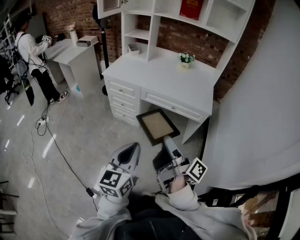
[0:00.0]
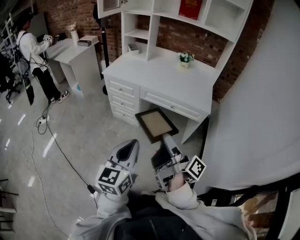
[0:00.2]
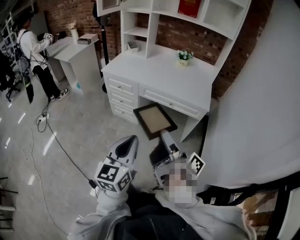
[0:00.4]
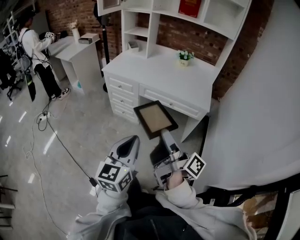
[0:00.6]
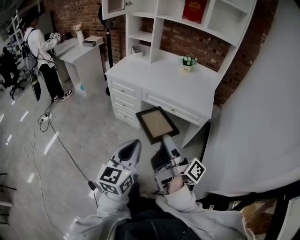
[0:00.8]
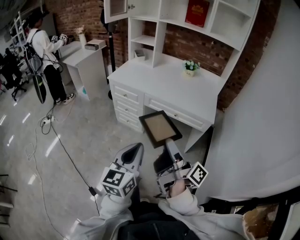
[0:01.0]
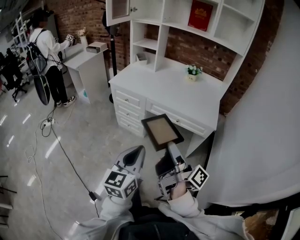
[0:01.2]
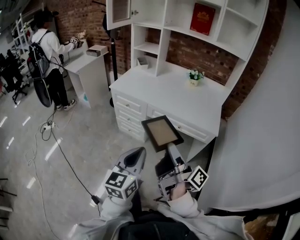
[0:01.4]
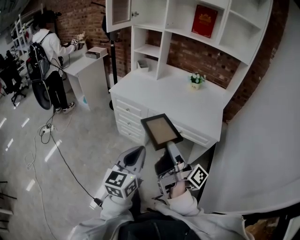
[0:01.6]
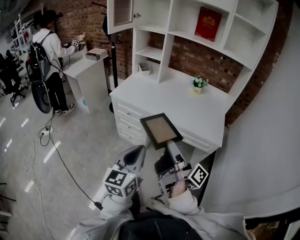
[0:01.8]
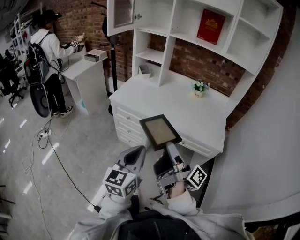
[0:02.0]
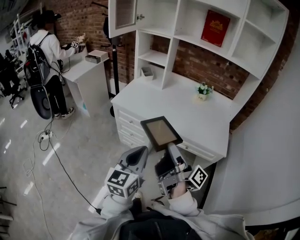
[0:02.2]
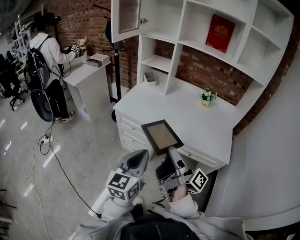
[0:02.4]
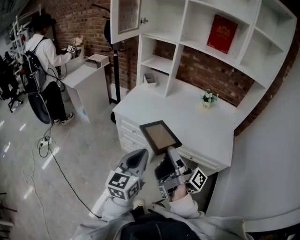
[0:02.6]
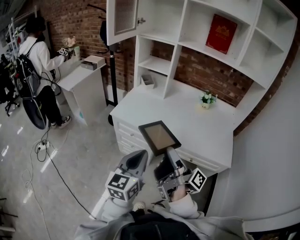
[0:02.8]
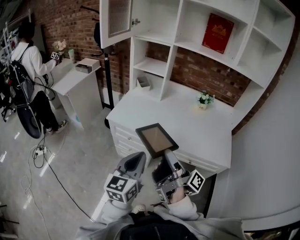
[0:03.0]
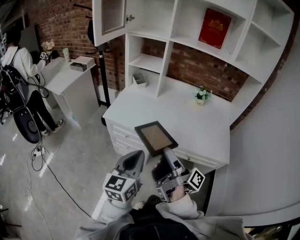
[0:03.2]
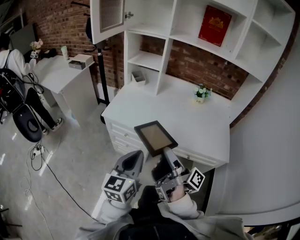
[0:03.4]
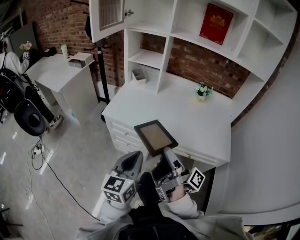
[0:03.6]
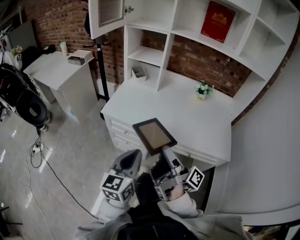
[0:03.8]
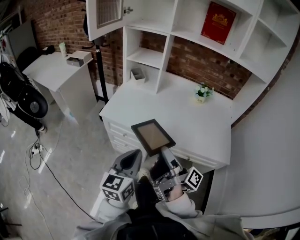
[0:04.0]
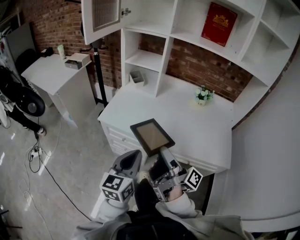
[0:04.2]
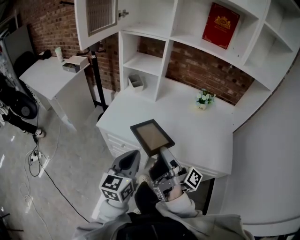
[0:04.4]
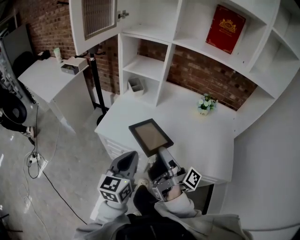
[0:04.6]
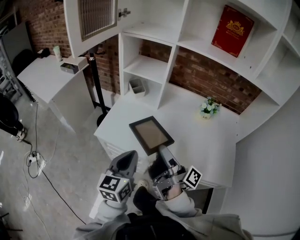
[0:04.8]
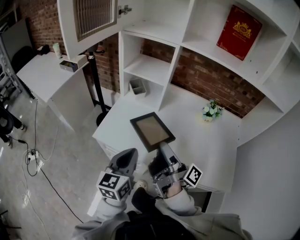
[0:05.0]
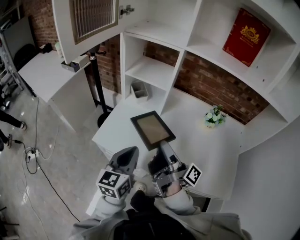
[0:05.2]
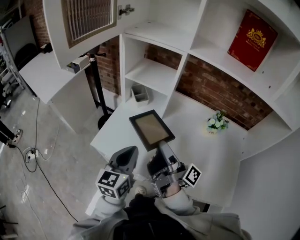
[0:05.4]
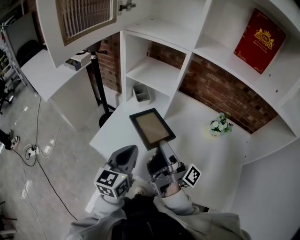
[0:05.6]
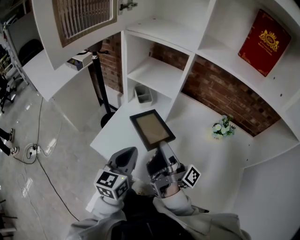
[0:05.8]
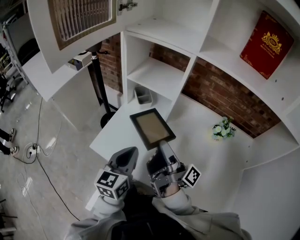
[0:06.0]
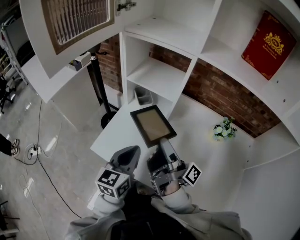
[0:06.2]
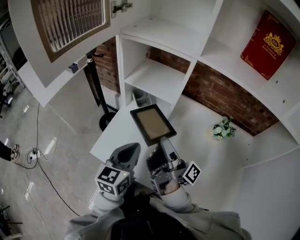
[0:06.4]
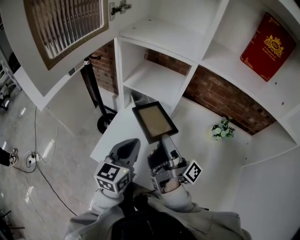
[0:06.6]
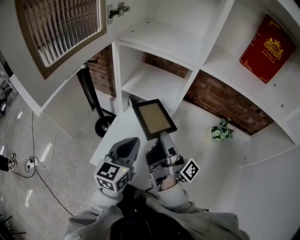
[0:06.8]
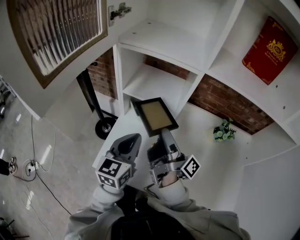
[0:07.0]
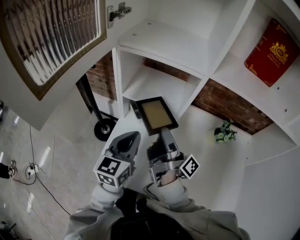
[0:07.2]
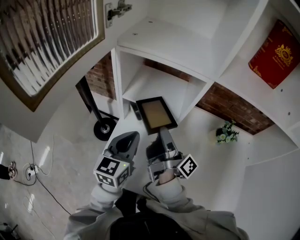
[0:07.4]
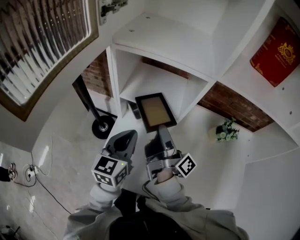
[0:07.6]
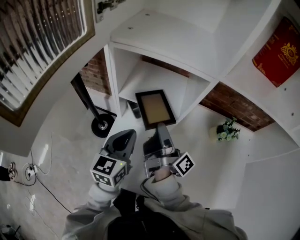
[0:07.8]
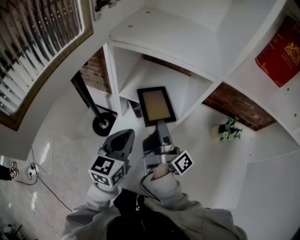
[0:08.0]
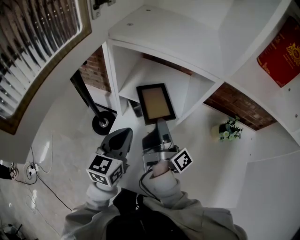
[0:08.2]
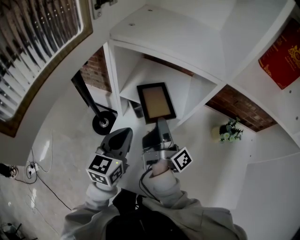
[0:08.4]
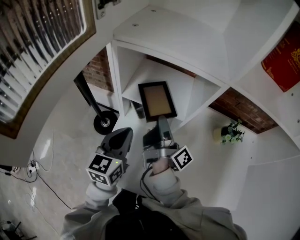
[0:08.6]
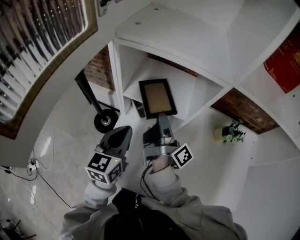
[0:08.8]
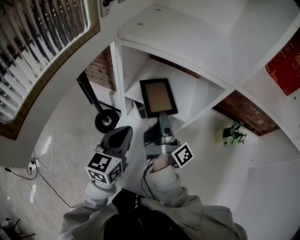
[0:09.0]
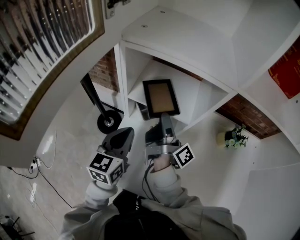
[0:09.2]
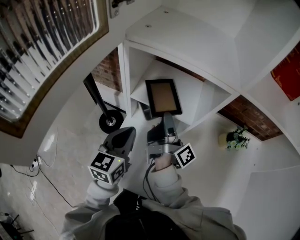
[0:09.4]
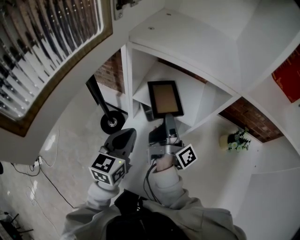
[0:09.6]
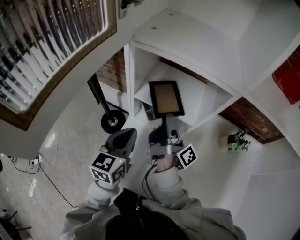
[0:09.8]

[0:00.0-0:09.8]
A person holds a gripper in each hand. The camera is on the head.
0:00.0 to 0:01.4: The left gripper changes place by roughly 10 cm.
0:01.4 to 0:02.8: The left gripper ends up about 30 cm from where it was.
0:02.8 to 0:04.2: The left gripper moves approximately 10 cm.
0:04.2 to 0:05.6: The left gripper changes place by approximately 30 cm.
0:05.6 to 0:07.0: The left gripper changes place by approximately 15 cm.
0:07.0 to 0:08.4: The left gripper shifts by about 10 cm.

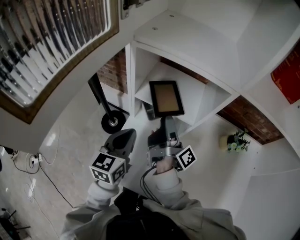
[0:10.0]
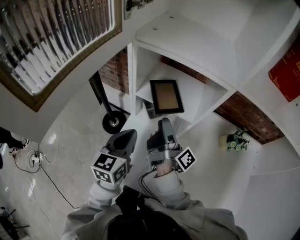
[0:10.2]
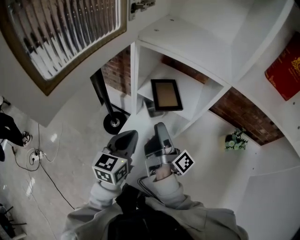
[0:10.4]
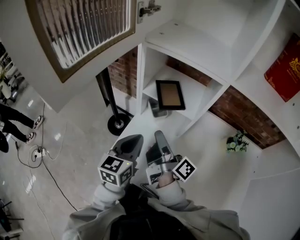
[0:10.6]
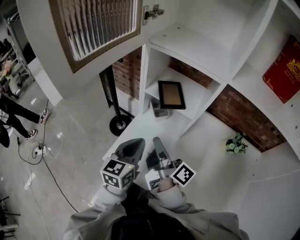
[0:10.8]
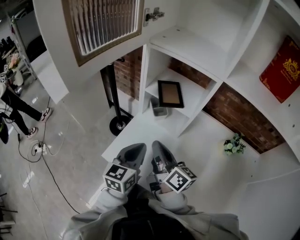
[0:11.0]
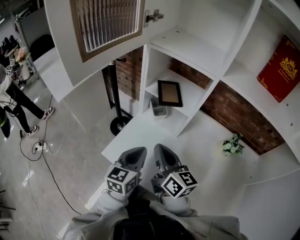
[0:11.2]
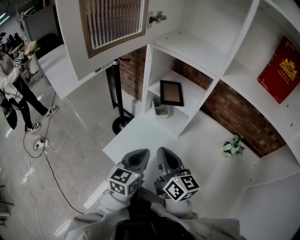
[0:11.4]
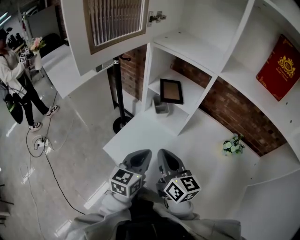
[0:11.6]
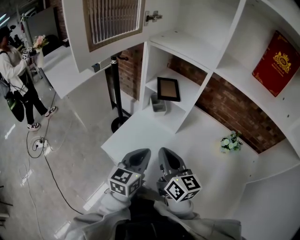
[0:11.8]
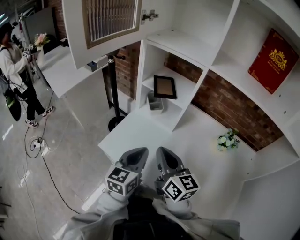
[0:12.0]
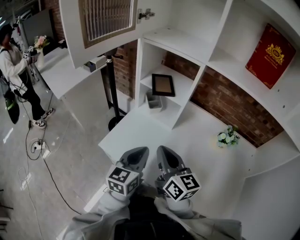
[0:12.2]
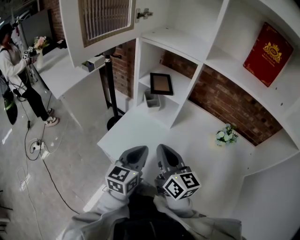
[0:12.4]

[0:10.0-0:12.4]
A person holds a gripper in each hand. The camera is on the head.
0:10.0 to 0:11.2: The left gripper ends up some 15 cm from where it was.
0:11.2 to 0:12.4: The left gripper shifts by some 10 cm.

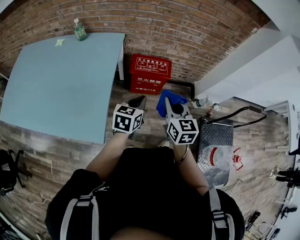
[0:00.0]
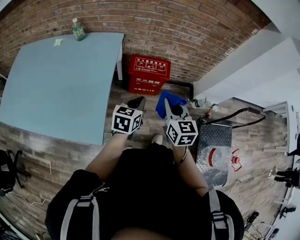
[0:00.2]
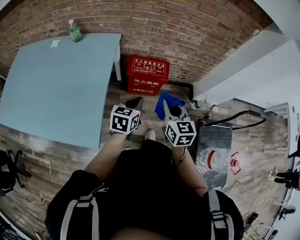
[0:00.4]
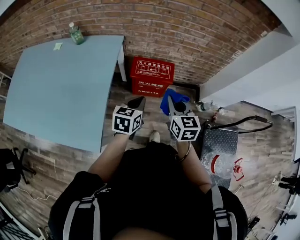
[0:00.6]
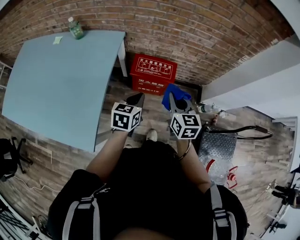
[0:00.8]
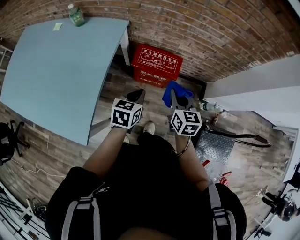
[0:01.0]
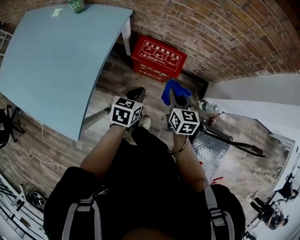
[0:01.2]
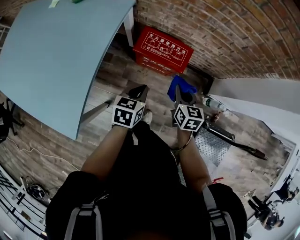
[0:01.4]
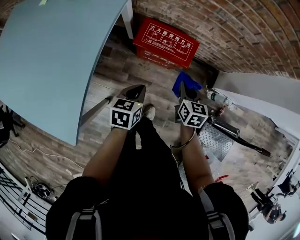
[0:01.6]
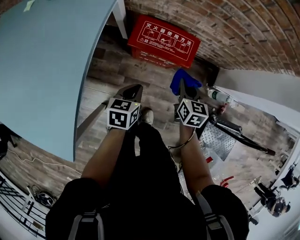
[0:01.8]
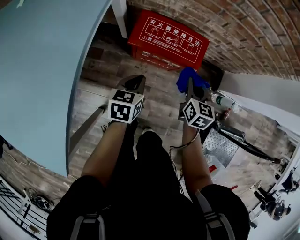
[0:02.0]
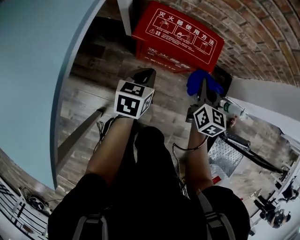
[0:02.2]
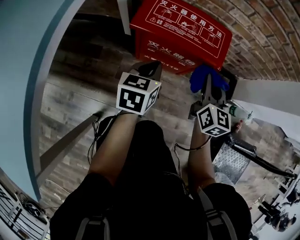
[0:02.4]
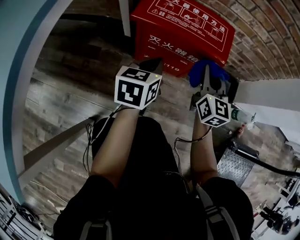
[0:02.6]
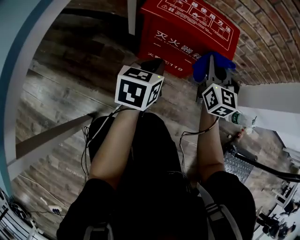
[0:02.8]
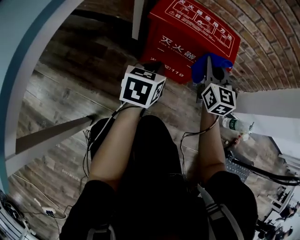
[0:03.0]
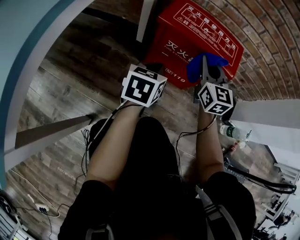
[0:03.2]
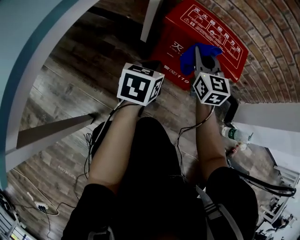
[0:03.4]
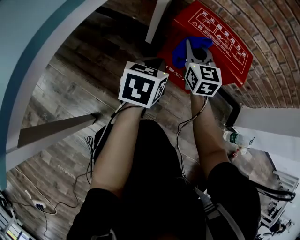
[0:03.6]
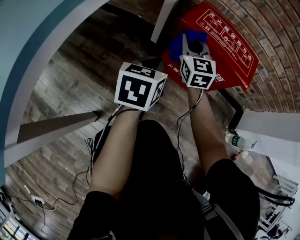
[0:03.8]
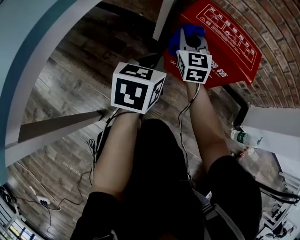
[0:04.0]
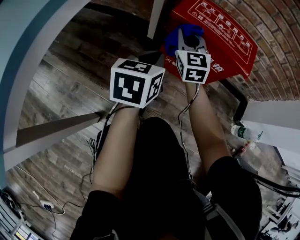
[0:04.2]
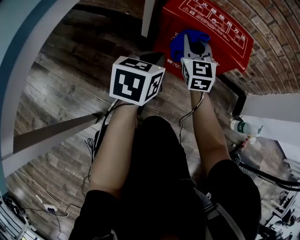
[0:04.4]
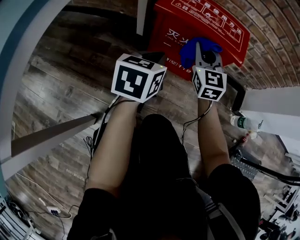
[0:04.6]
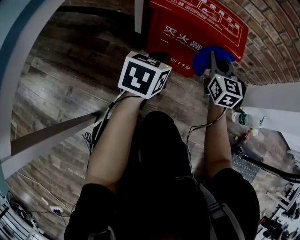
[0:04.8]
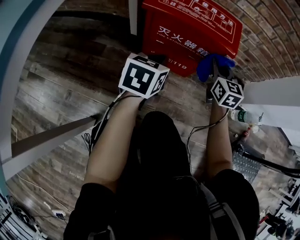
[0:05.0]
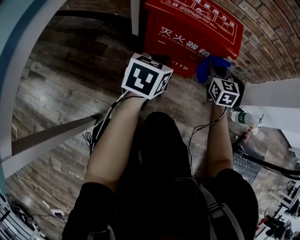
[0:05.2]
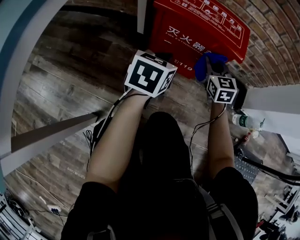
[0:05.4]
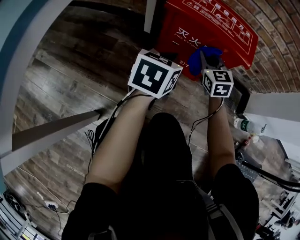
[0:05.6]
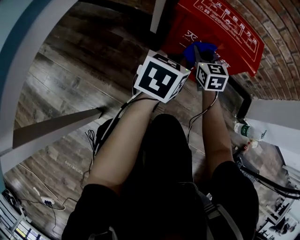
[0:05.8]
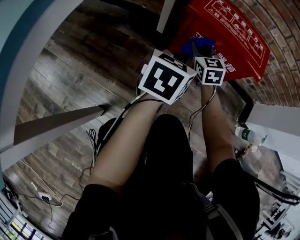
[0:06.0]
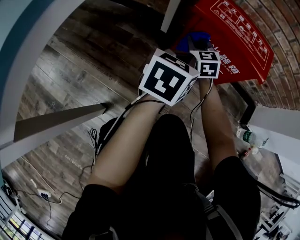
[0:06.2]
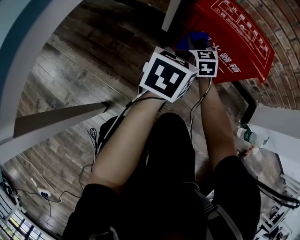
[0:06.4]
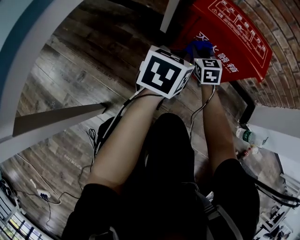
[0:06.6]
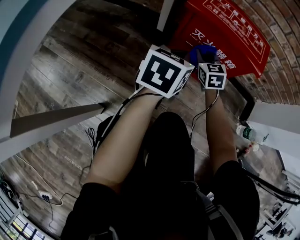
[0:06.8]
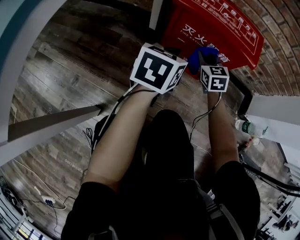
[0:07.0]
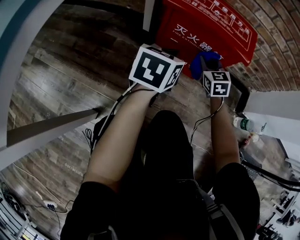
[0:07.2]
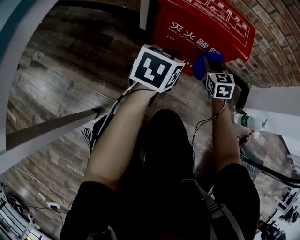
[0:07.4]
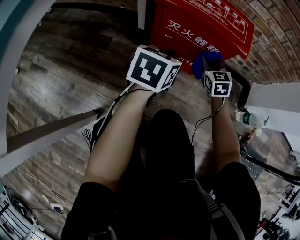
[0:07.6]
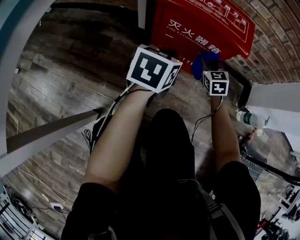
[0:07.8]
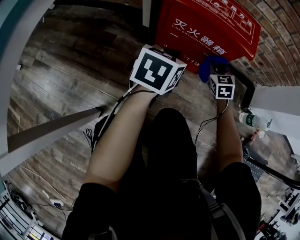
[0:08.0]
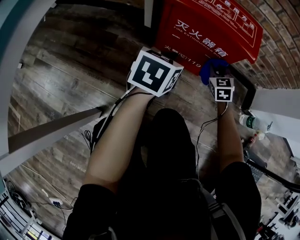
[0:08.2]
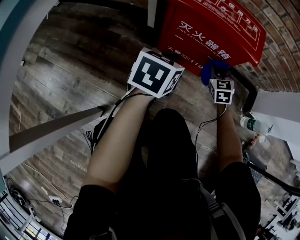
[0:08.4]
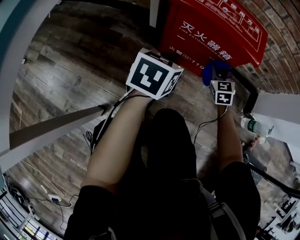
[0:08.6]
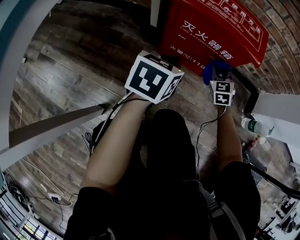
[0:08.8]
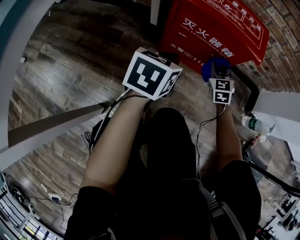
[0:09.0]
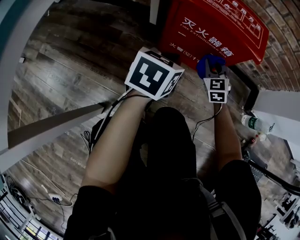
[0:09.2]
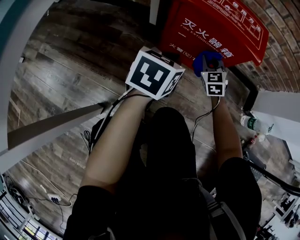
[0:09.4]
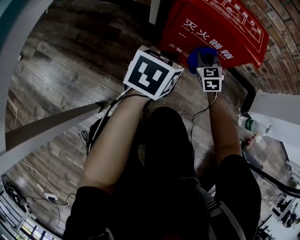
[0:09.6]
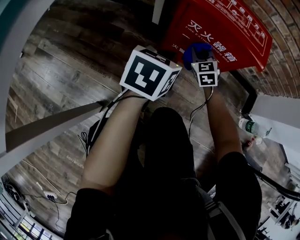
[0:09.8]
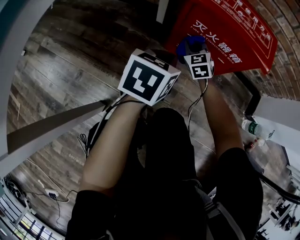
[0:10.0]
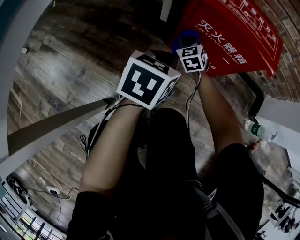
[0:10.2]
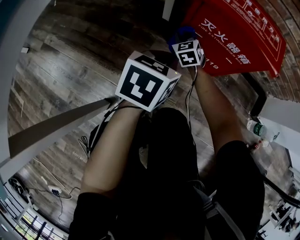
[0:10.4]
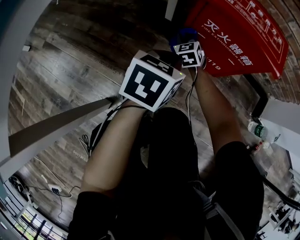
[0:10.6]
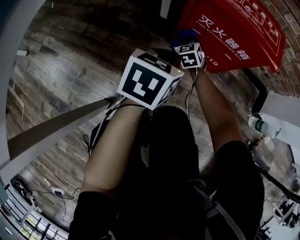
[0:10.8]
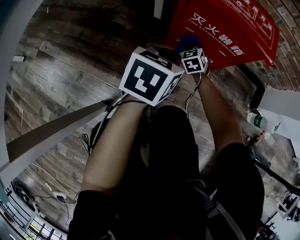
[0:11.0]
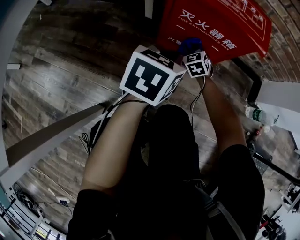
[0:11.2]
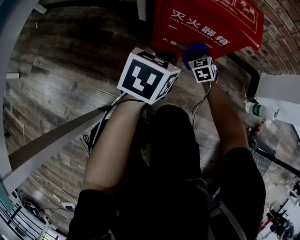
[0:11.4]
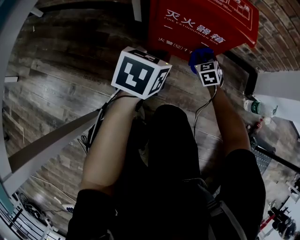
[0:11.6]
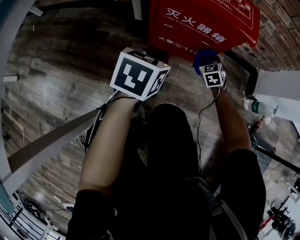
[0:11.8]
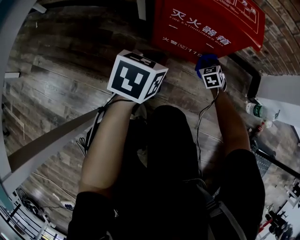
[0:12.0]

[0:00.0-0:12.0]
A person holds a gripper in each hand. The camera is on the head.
0:00.0 to 0:01.6: The two grippers go about 35 cm downward and forward. The right gripper turns by roughly 20 degrees, while the left gripper changes its angle by roughly 20 degrees.
0:01.6 to 0:03.0: Both grippers move downward, roughly 25 cm. The right gripper tilts its fingers about 30 degrees upward.
0:03.0 to 0:04.4: The right gripper is displaced to the left by some 15 cm.
0:04.4 to 0:06.0: The right gripper goes about 10 cm downward, and goes to the right and returns, roughly 20 cm each way.
0:06.0 to 0:07.6: The right gripper heads to the right, covering some 15 cm. The left gripper ends up some 5 cm from where it was.
0:07.6 to 0:09.0: The grippers stay close to where they were, moving slightly.
0:09.0 to 0:10.4: The right gripper shifts approximately 25 cm to the left, while the left gripper is displaced to the left by roughly 5 cm.
0:10.4 to 0:12.0: The right gripper is displaced to the right by roughly 25 cm, and rotates about 20 degrees.
